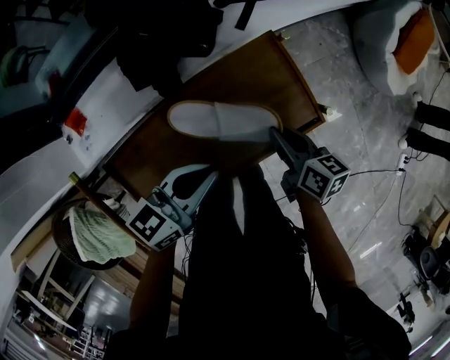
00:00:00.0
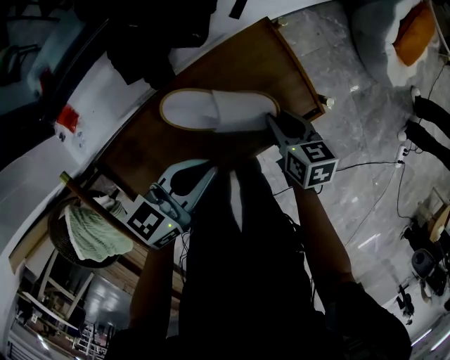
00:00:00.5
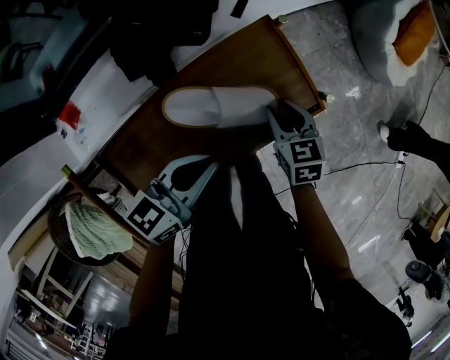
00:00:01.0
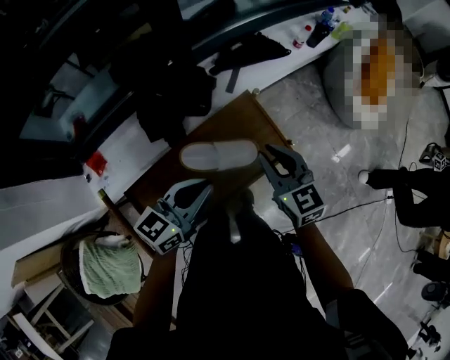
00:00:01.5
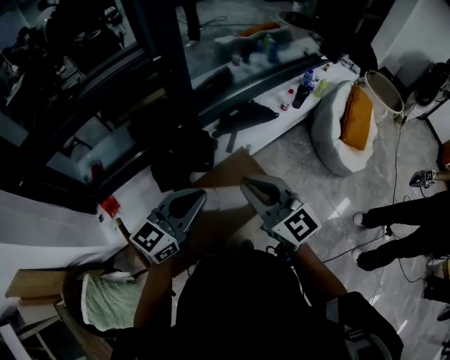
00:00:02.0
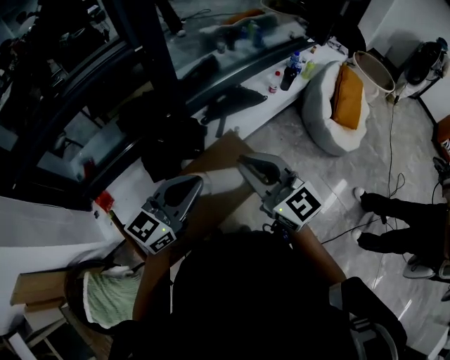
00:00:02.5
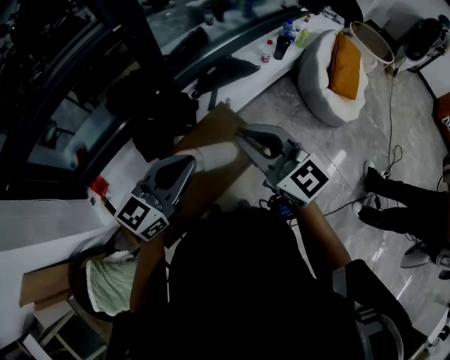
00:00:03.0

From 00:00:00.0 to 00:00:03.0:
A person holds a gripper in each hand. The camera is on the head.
From 00:00:00.0 to 00:00:01.5: The left gripper shifts about 10 cm upward, while the right gripper heads upward, covering some 20 cm, and rolls counterclockwise, seen from behind, by some 40 degrees.
From 00:00:01.5 to 00:00:03.0: The grippers both shift upward by approximately 15 cm. The right gripper turns by some 30 degrees, while the left gripper rotates approximately 20 degrees.

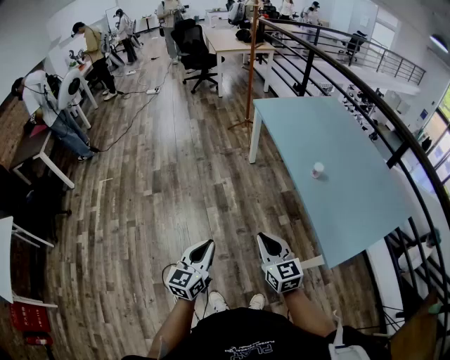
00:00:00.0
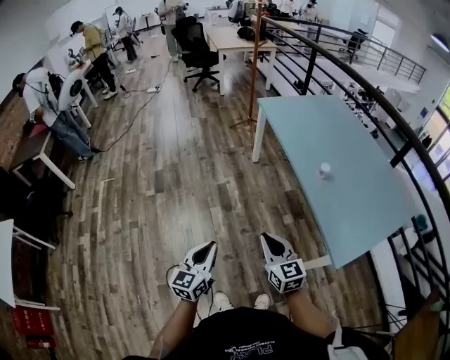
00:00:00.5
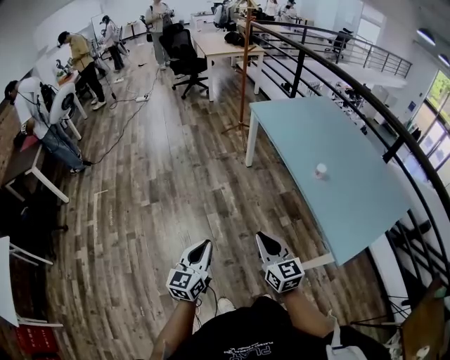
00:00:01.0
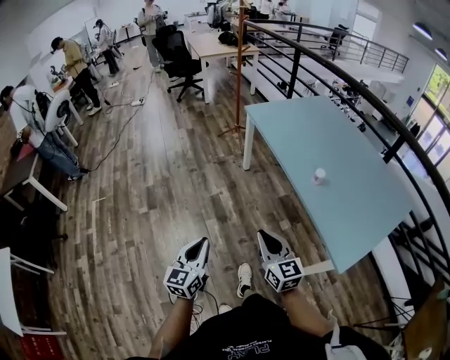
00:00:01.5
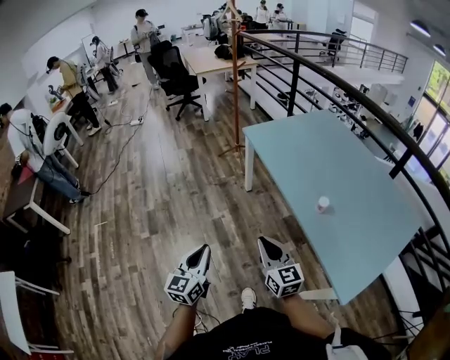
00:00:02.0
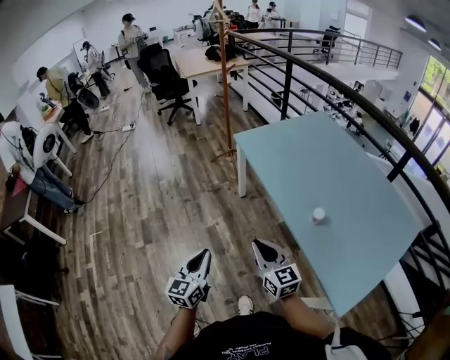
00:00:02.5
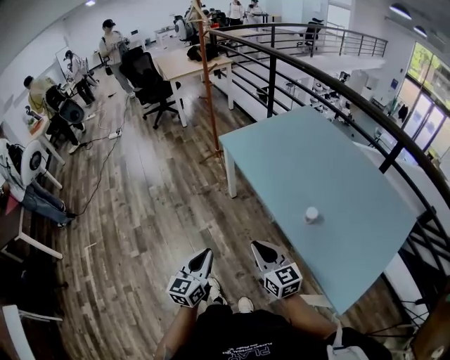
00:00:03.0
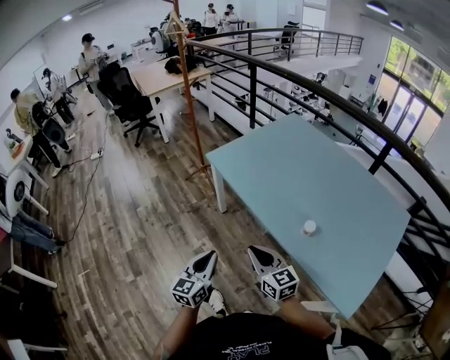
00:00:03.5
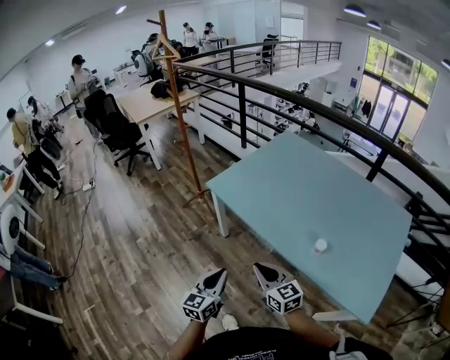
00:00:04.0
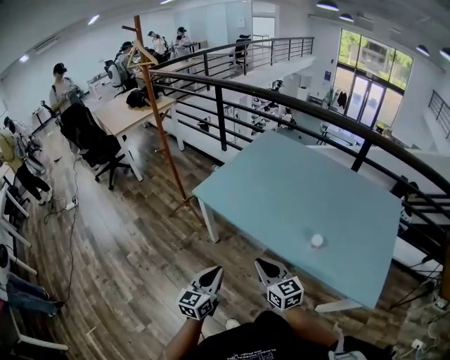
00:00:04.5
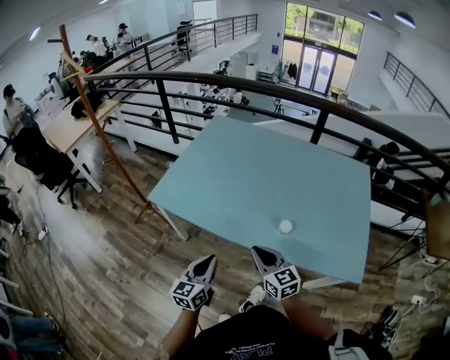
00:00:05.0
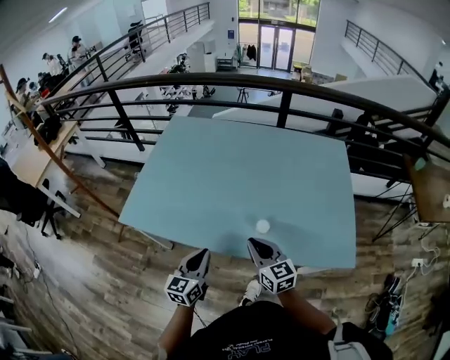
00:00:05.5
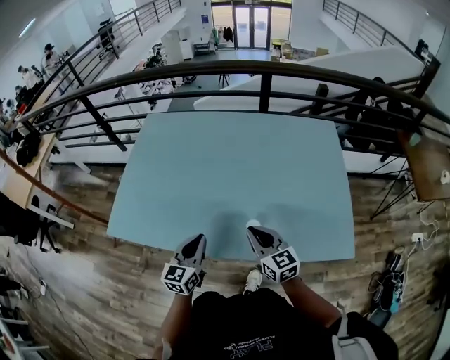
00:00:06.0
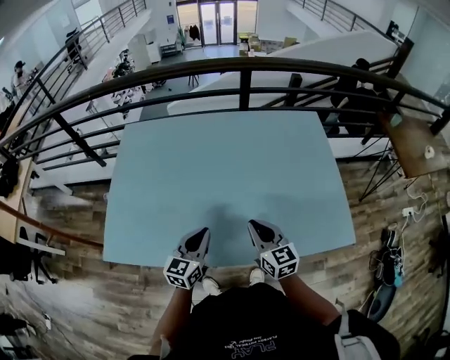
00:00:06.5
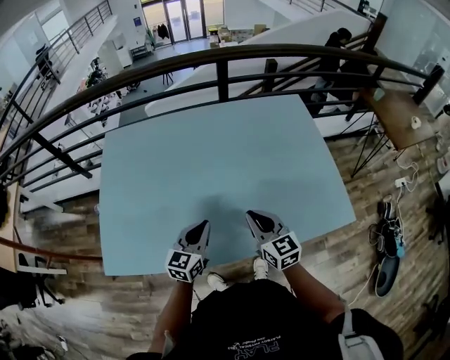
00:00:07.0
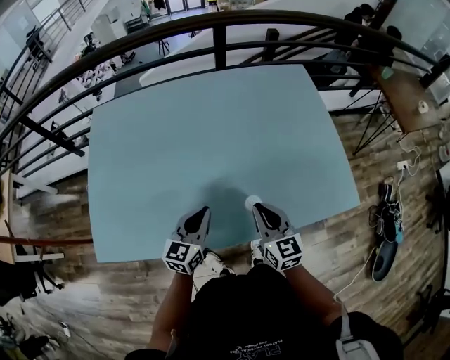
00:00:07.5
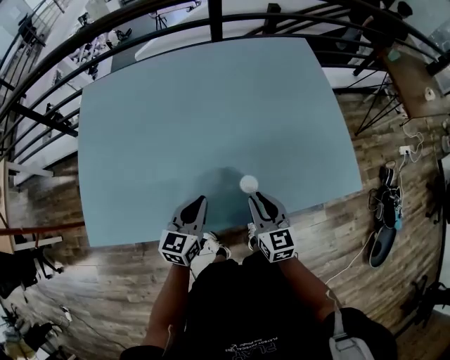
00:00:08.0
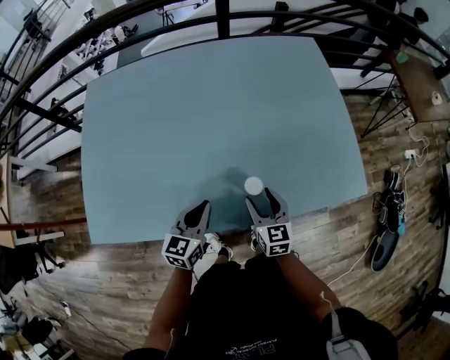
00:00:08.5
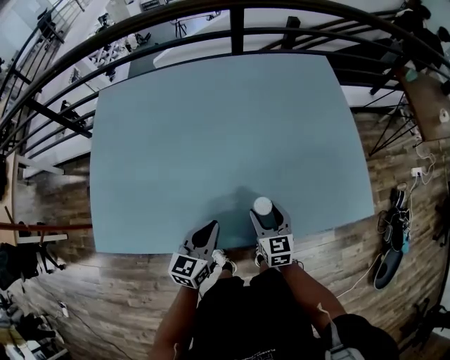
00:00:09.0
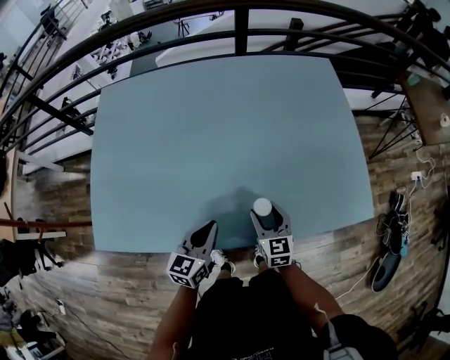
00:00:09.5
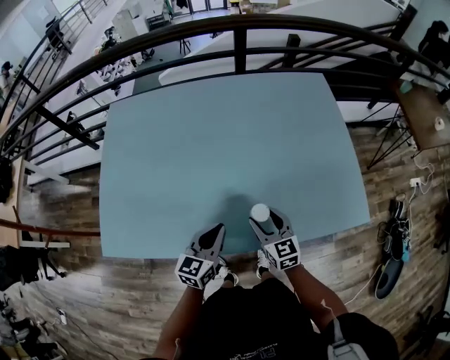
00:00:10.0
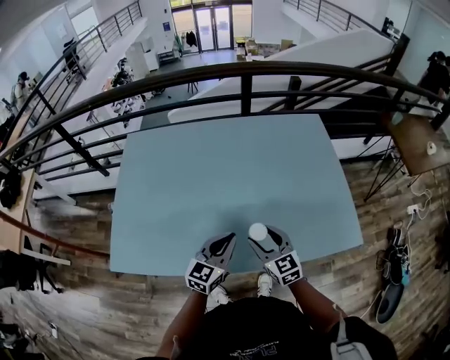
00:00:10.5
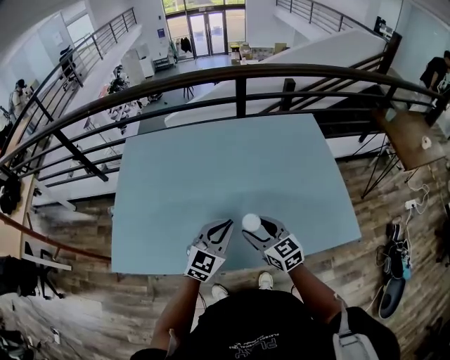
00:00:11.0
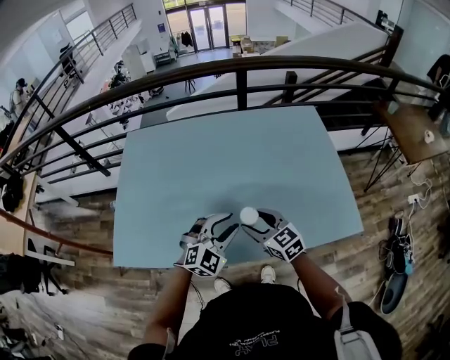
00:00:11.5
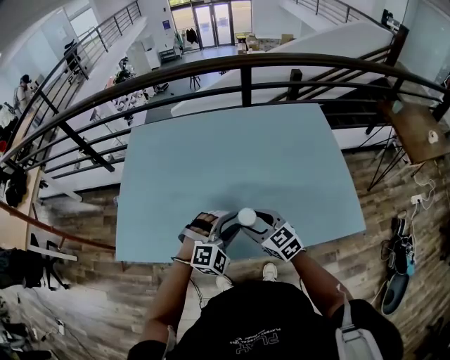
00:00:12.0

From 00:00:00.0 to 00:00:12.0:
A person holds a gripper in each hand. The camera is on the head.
From 00:00:00.0 to 00:00:02.0: Both grippers move forward, about 20 cm.
From 00:00:02.0 to 00:00:04.0: The two grippers go roughly 25 cm forward. The left gripper turns by approximately 30 degrees.
From 00:00:04.0 to 00:00:06.0: The right gripper shifts by about 30 cm, and changes its angle by about 40 degrees, while the left gripper moves some 35 cm, and turns by roughly 40 degrees.
From 00:00:06.0 to 00:00:08.0: The right gripper is displaced downward by roughly 10 cm, and rotates some 30 degrees. The left gripper shifts approximately 10 cm downward and forward, and rotates approximately 20 degrees.
From 00:00:08.0 to 00:00:10.0: The right gripper opens.
From 00:00:10.0 to 00:00:12.0: The left gripper moves upward, approximately 5 cm, twists about 80 degrees clockwise, seen from behind, and opens up; the right gripper shifts approximately 10 cm upward and to the left, and changes its angle by approximately 20 degrees.

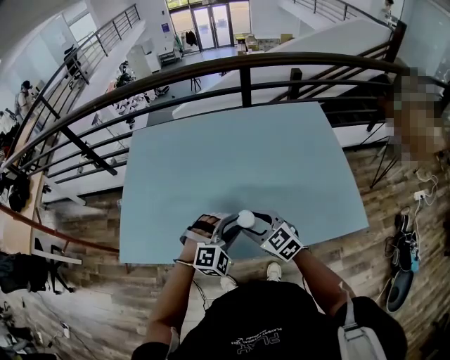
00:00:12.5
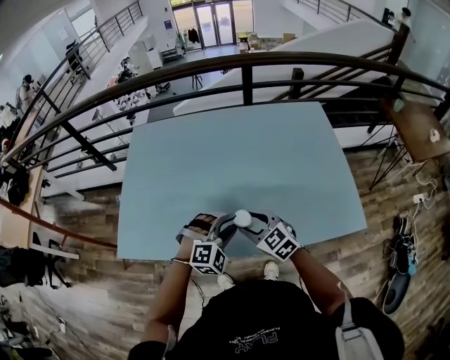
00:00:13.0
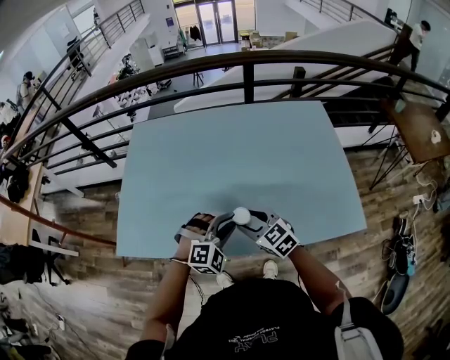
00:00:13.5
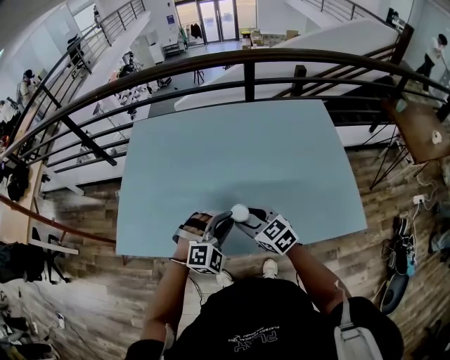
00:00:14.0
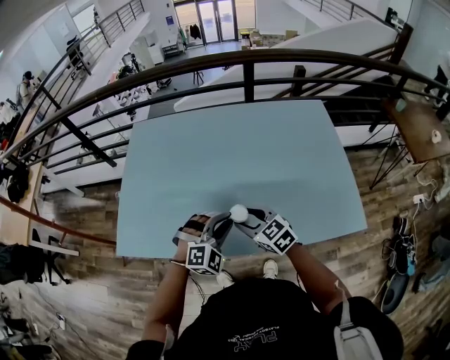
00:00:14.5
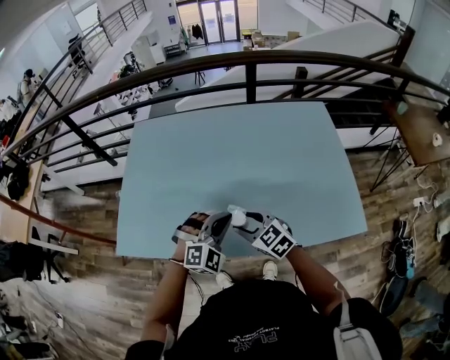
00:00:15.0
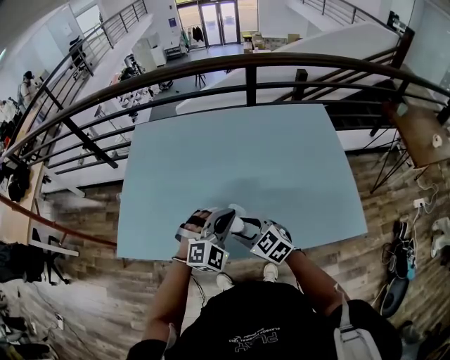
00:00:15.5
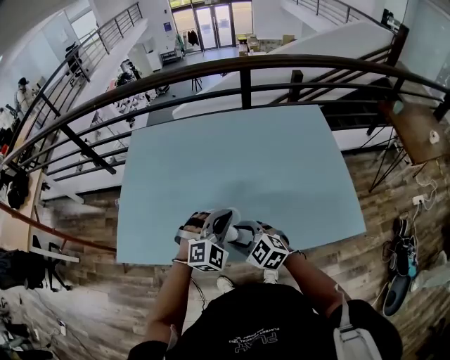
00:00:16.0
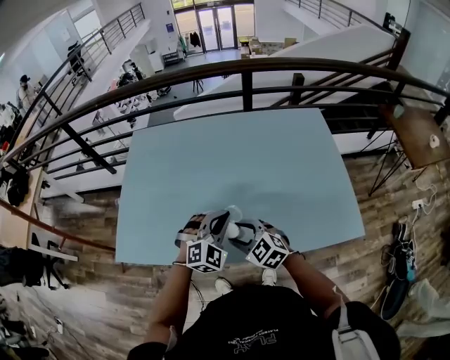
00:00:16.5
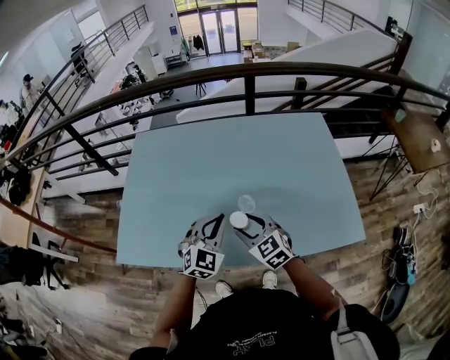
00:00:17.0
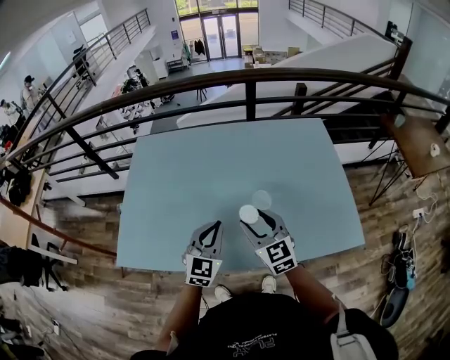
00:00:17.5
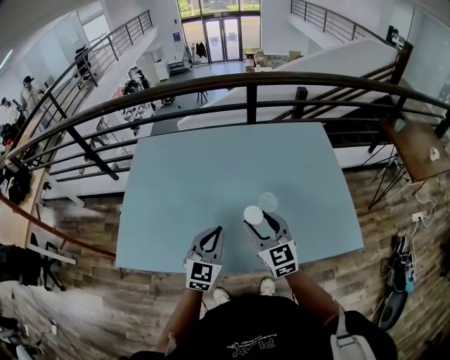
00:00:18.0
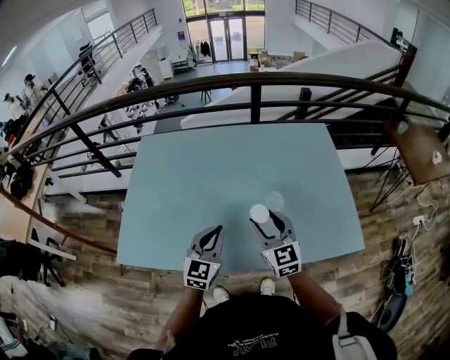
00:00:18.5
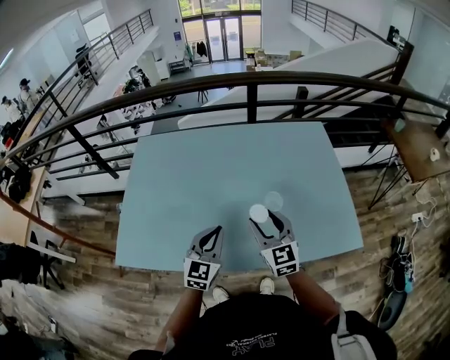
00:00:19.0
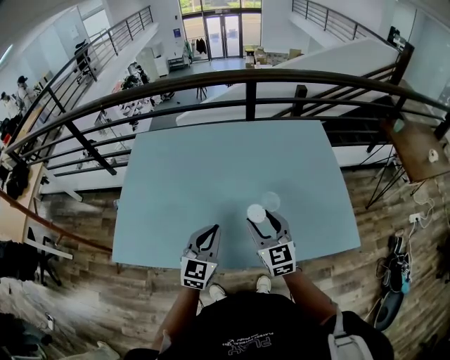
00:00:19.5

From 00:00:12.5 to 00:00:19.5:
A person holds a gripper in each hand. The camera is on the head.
From 00:00:12.5 to 00:00:14.5: The left gripper closes its fingers.
From 00:00:14.5 to 00:00:16.0: The right gripper ends up approximately 5 cm from where it was.
From 00:00:16.0 to 00:00:17.5: The left gripper shifts approximately 5 cm to the left, and rolls counterclockwise, seen from behind, by approximately 40 degrees. The right gripper goes about 15 cm upward, to the right and forward, and swivels roughly 40 degrees.
From 00:00:17.5 to 00:00:19.5: There are only small adjustments of the grippers.

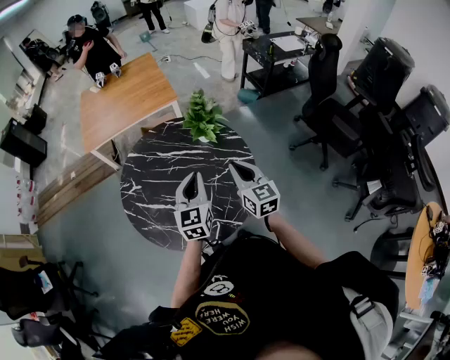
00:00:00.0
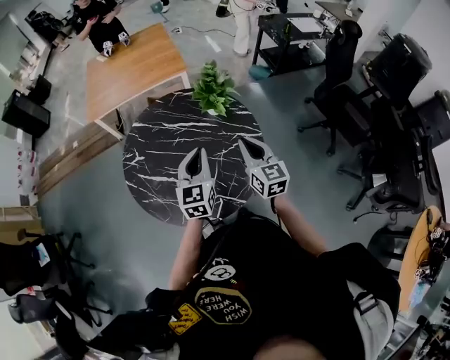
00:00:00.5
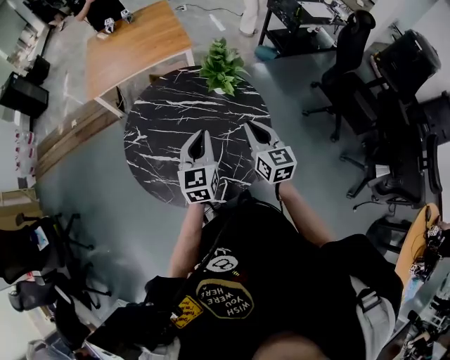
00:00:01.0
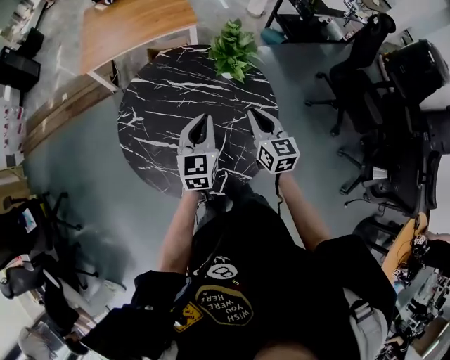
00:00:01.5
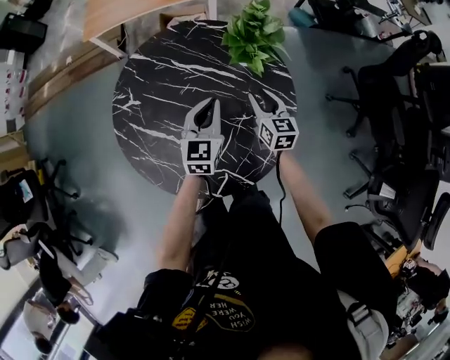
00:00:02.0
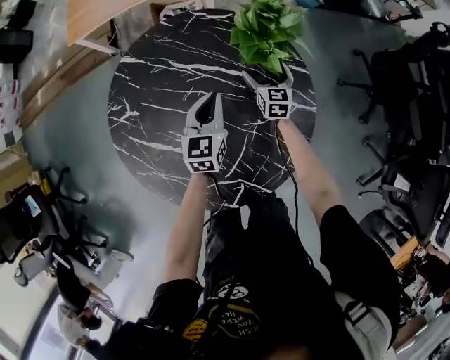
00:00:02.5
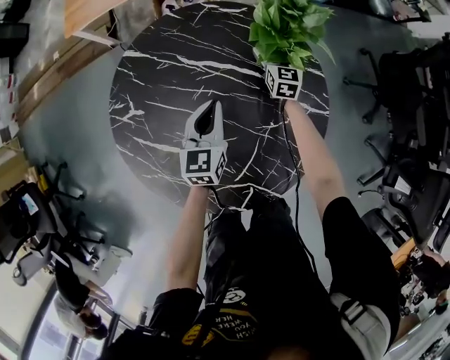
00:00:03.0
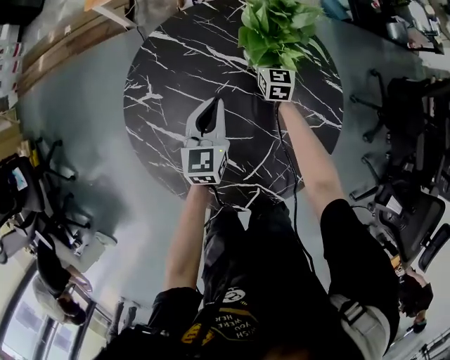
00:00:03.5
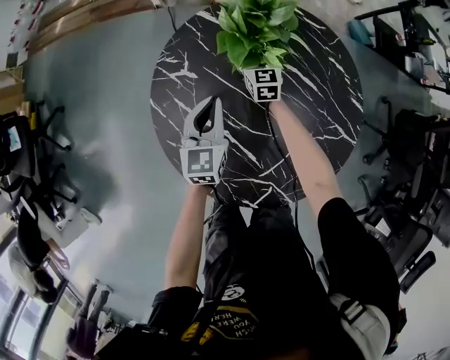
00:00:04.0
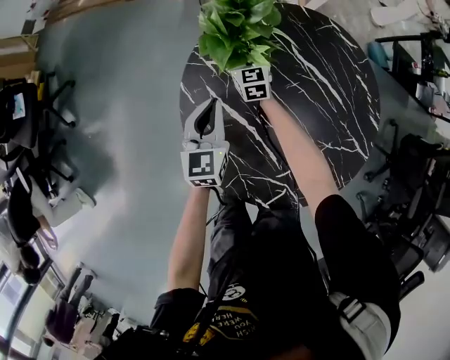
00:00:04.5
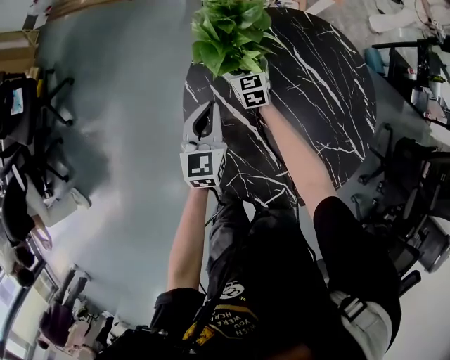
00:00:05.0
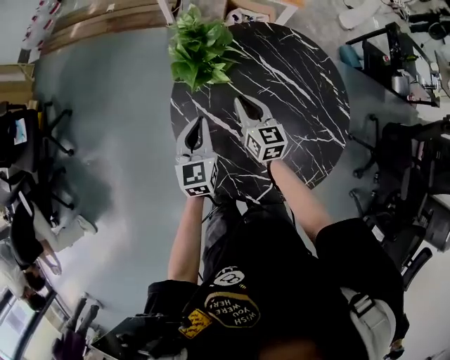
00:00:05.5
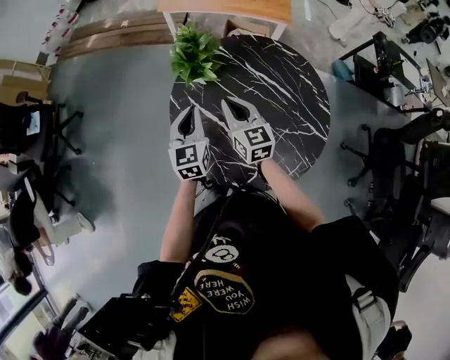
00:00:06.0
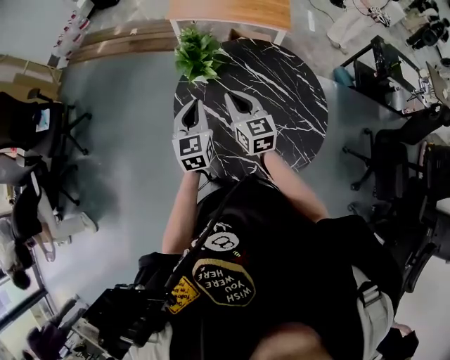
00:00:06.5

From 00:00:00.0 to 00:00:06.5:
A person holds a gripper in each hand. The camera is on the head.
From 00:00:00.0 to 00:00:02.0: The grippers both shift downward and forward by about 25 cm.
From 00:00:02.0 to 00:00:04.5: The left gripper changes place by about 35 cm, and turns by about 30 degrees; the right gripper shifts by approximately 50 cm, swivels some 30 degrees, and opens.
From 00:00:04.5 to 00:00:06.5: The left gripper travels upward and backward by some 25 cm, while the right gripper is displaced upward and backward by some 40 cm, and closes its fingers.
